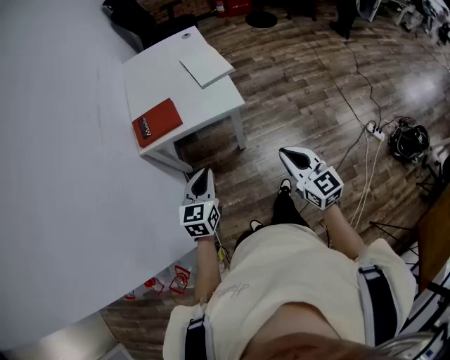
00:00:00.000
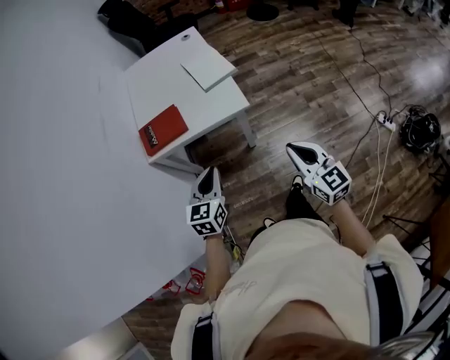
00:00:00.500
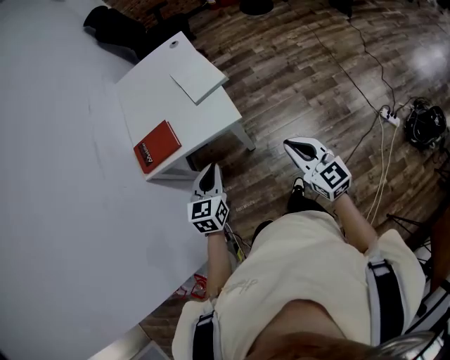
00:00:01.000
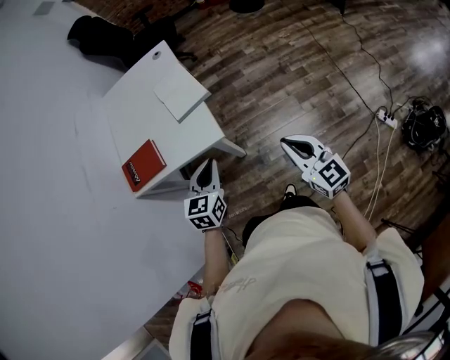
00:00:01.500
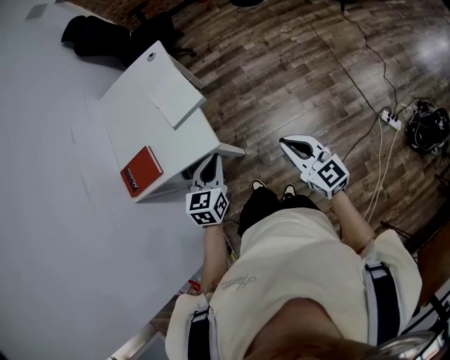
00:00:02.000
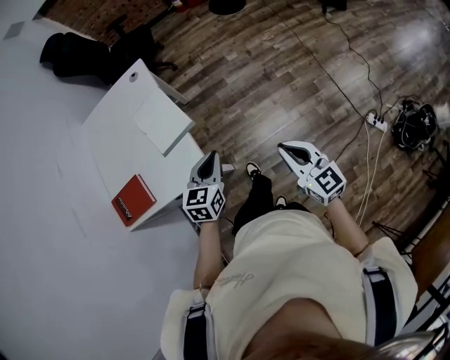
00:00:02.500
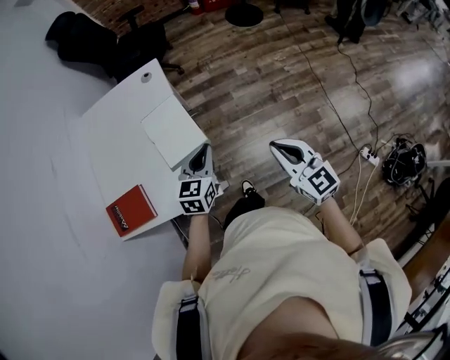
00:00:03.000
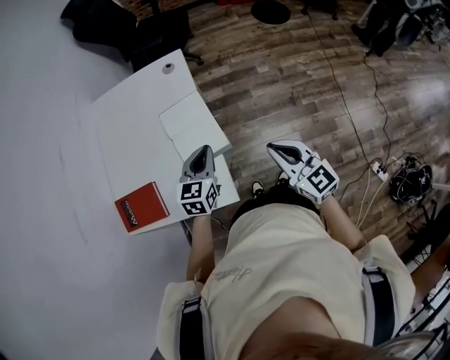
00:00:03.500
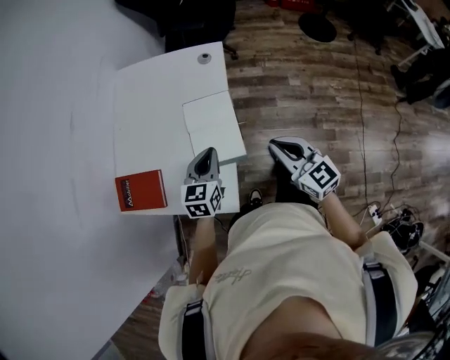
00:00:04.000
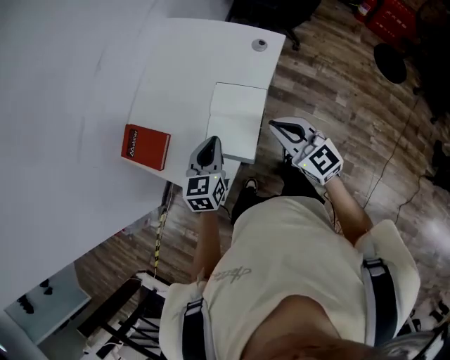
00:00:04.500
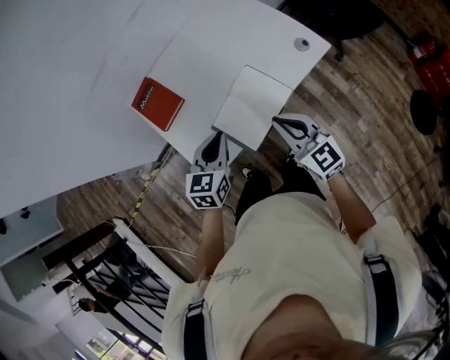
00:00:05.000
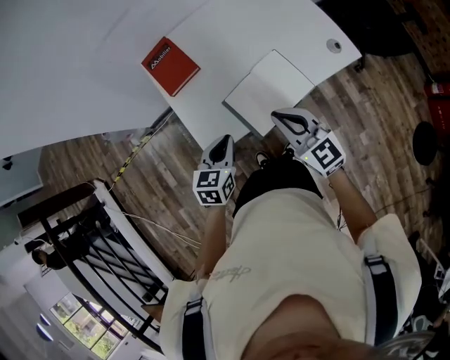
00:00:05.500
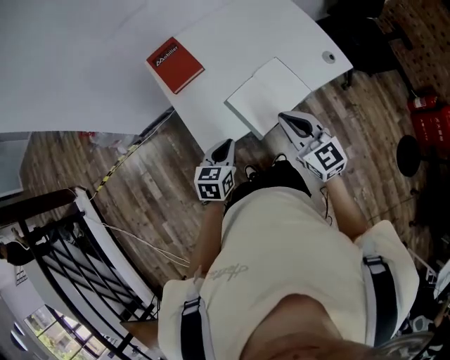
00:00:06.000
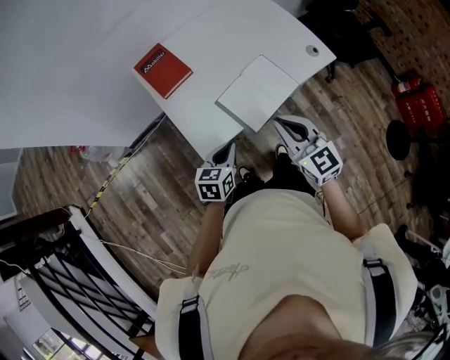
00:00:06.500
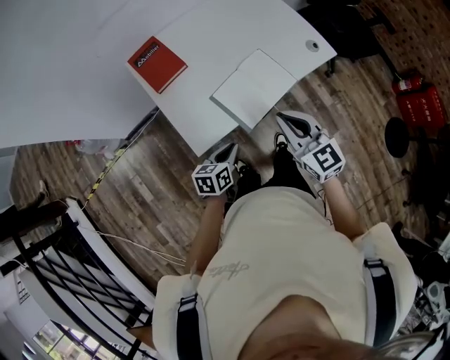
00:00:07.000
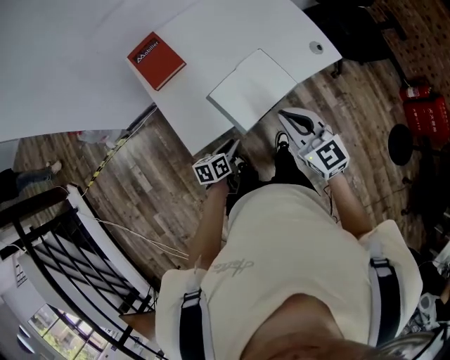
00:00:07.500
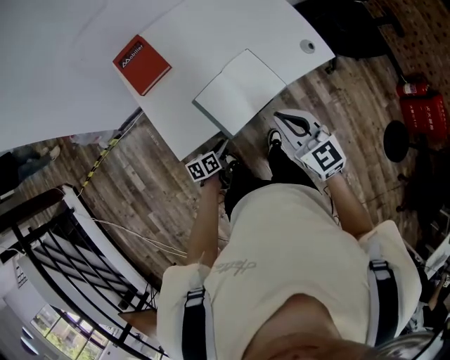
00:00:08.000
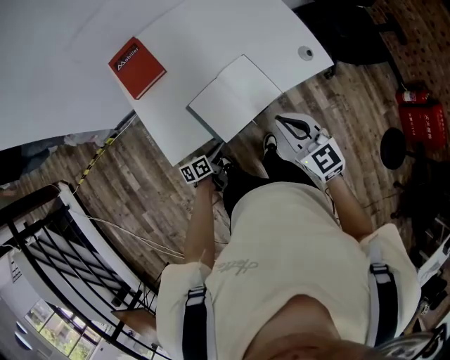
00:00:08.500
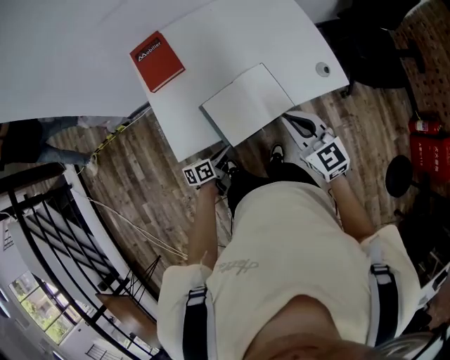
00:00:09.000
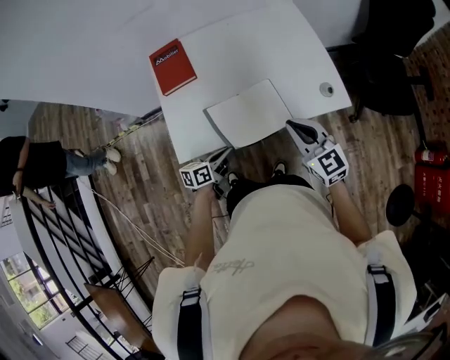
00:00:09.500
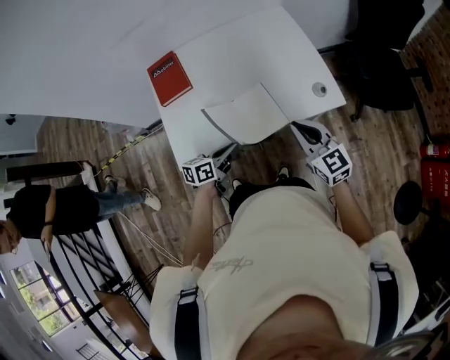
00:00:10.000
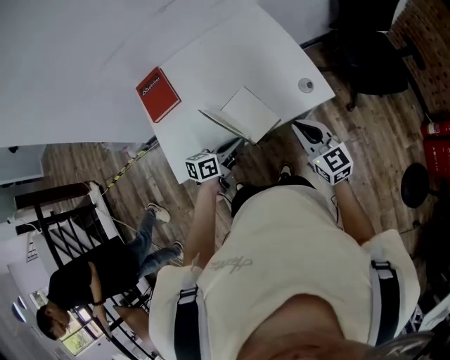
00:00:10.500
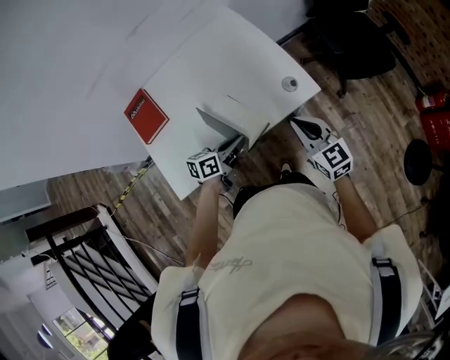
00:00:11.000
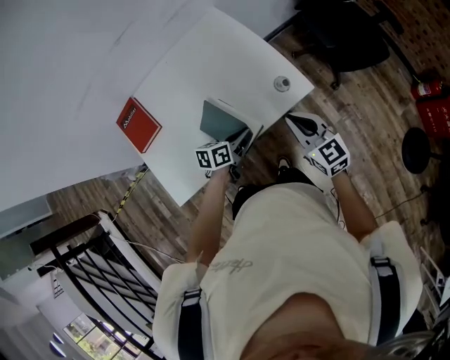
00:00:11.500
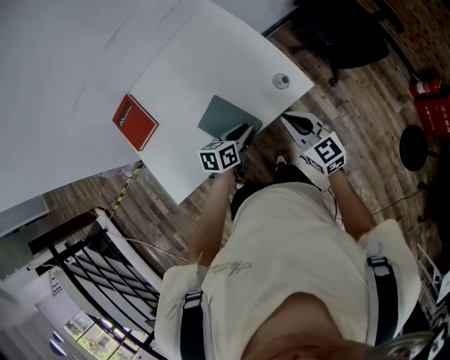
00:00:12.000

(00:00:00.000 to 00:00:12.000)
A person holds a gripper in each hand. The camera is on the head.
00:00:00.000 - 00:00:02.000: The grippers both shift to the right and forward by approximately 35 cm.
00:00:02.000 - 00:00:04.000: The right gripper shifts by approximately 40 cm, and turns by about 30 degrees. Meanwhile the left gripper changes place by approximately 35 cm, and changes its angle by approximately 20 degrees.
00:00:04.000 - 00:00:06.000: The left gripper changes place by some 15 cm, and changes its angle by approximately 60 degrees. The right gripper moves approximately 10 cm, and turns by some 60 degrees.
00:00:06.000 - 00:00:08.000: The left gripper moves downward, about 20 cm, and changes its angle by roughly 40 degrees, while the right gripper travels to the right by approximately 10 cm.
00:00:08.000 - 00:00:10.000: The left gripper travels upward, to the right and forward by about 20 cm. The right gripper travels to the right and forward by approximately 15 cm.
00:00:10.000 - 00:00:12.000: The right gripper heads to the right and forward, covering roughly 10 cm. Meanwhile the left gripper heads to the right and forward, covering about 20 cm, and opens.

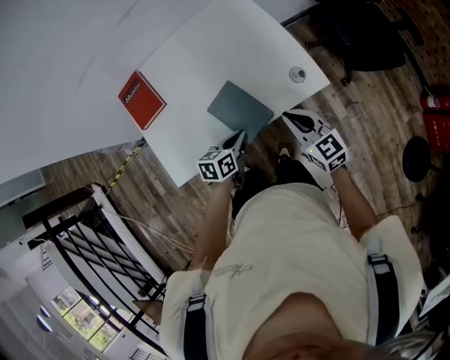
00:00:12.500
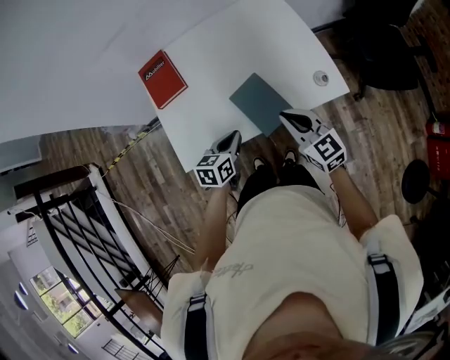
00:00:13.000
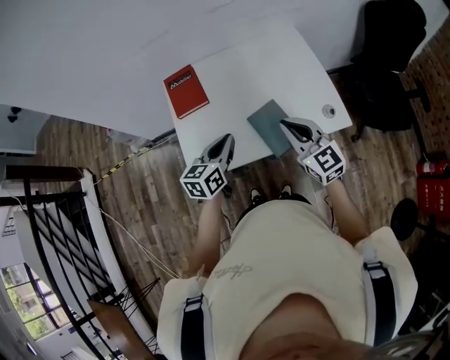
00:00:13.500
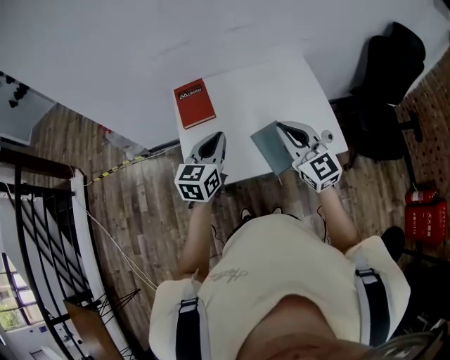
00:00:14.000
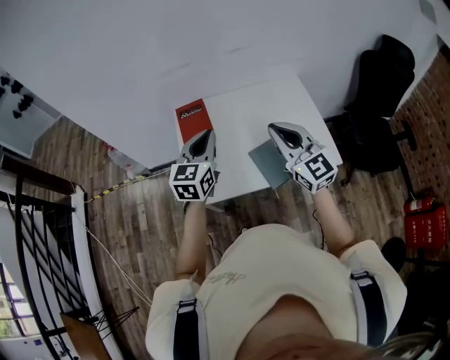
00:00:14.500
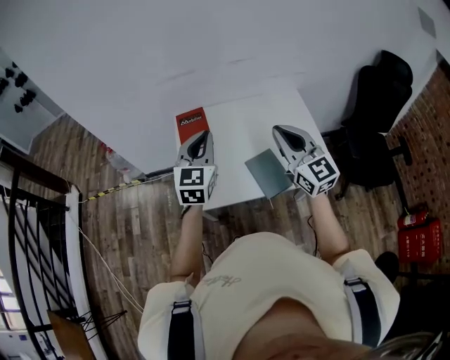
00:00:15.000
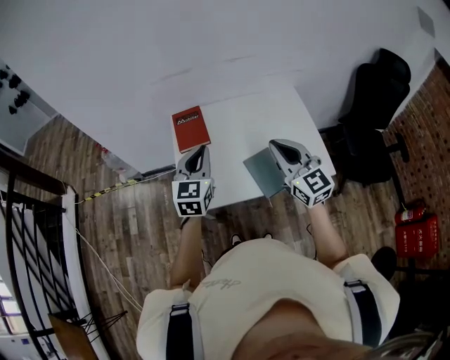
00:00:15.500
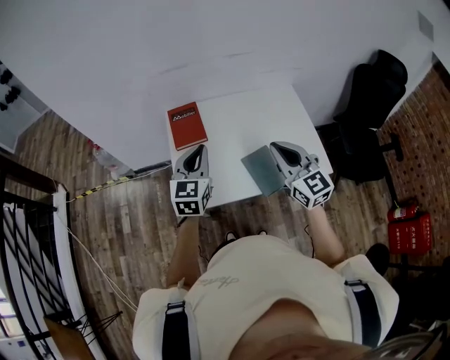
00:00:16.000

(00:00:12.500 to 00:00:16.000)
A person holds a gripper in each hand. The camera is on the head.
00:00:12.500 - 00:00:14.500: Both grippers travel together upward and to the left, some 35 cm. The right gripper swivels some 30 degrees. The left gripper angles its fingers upward, by roughly 30 degrees.
00:00:14.500 - 00:00:16.000: The grippers make only small movements.

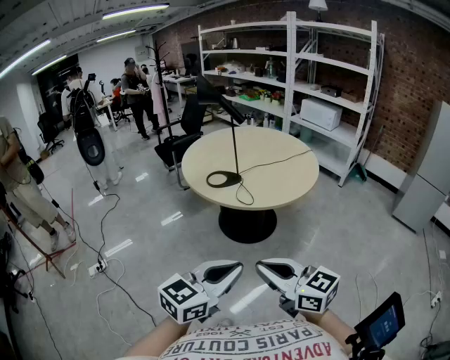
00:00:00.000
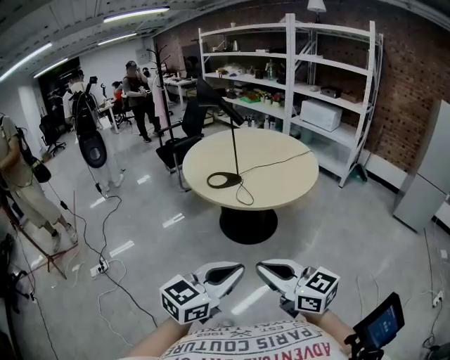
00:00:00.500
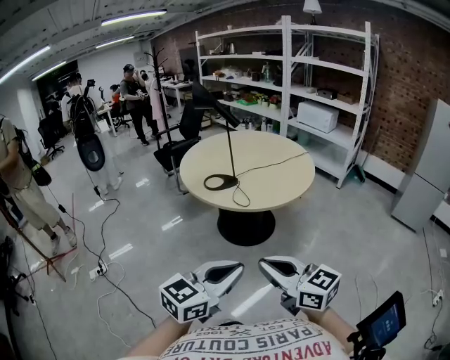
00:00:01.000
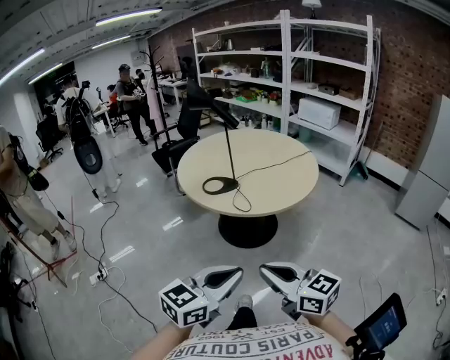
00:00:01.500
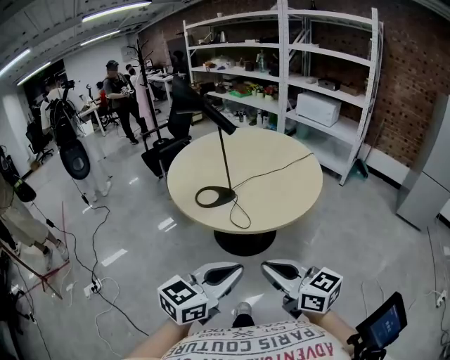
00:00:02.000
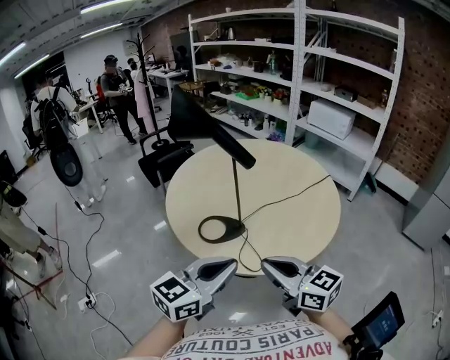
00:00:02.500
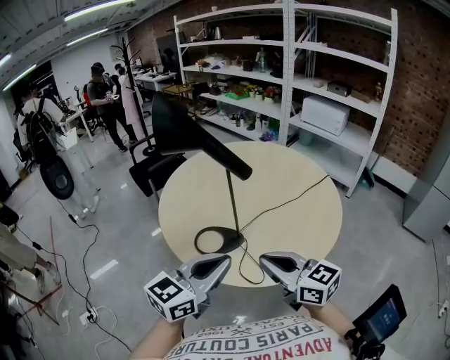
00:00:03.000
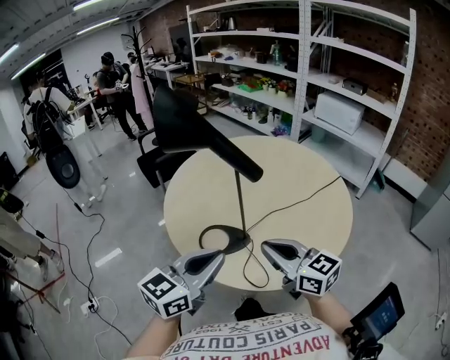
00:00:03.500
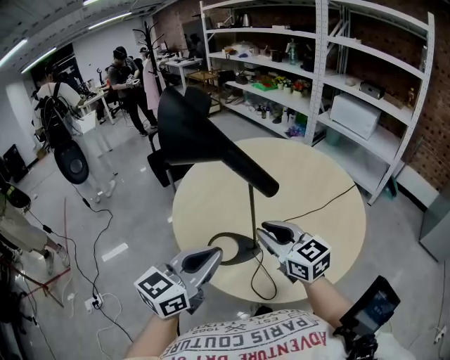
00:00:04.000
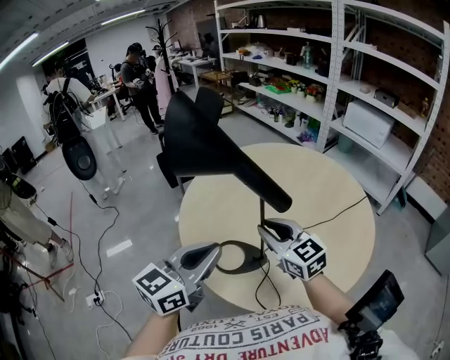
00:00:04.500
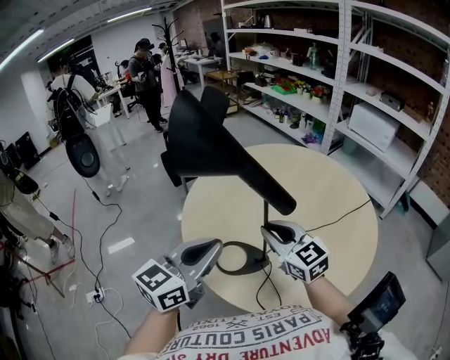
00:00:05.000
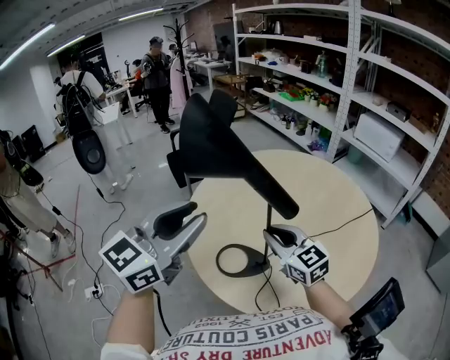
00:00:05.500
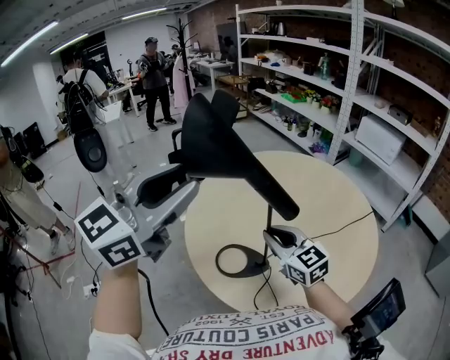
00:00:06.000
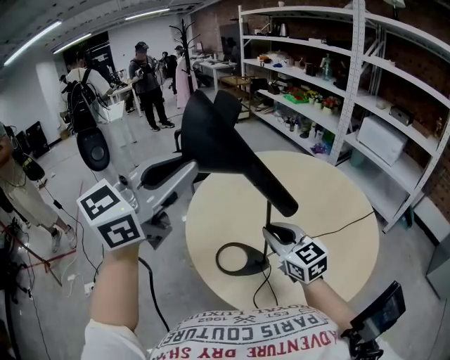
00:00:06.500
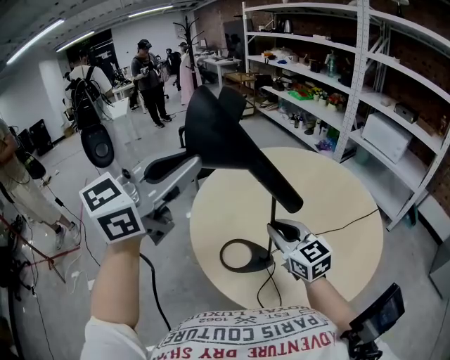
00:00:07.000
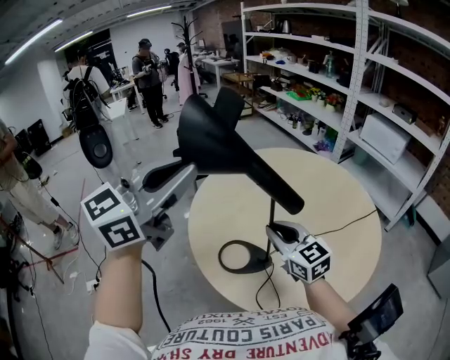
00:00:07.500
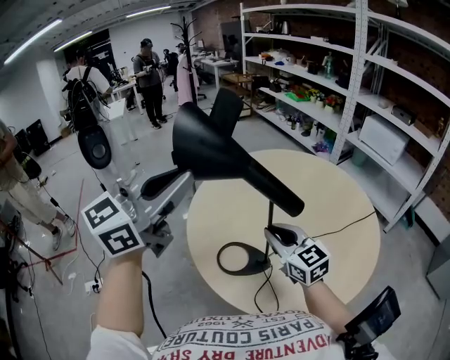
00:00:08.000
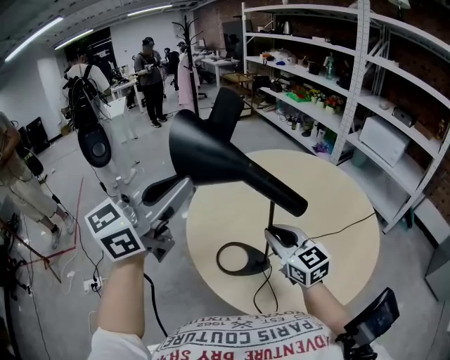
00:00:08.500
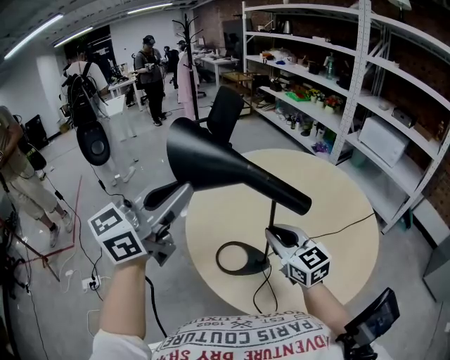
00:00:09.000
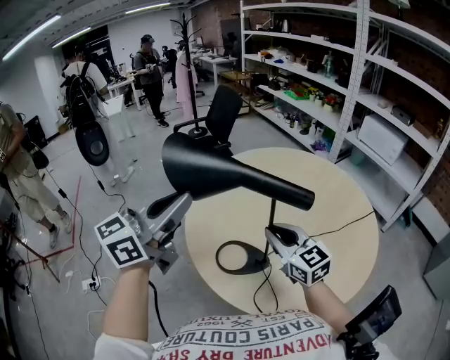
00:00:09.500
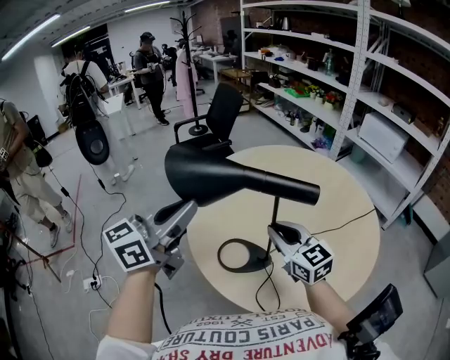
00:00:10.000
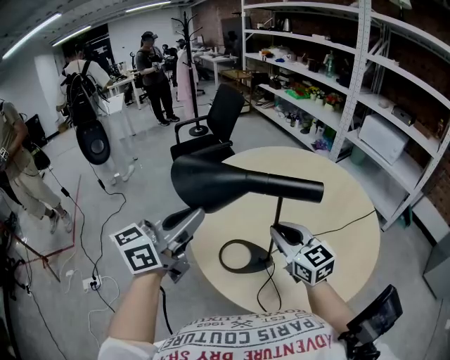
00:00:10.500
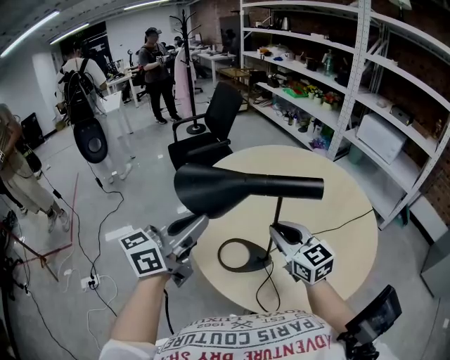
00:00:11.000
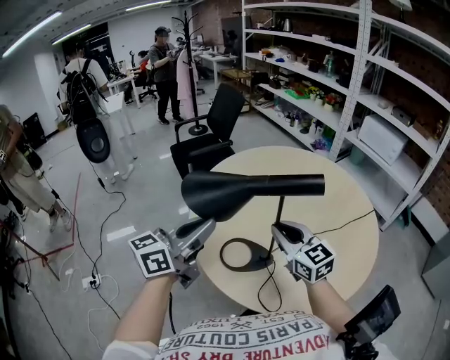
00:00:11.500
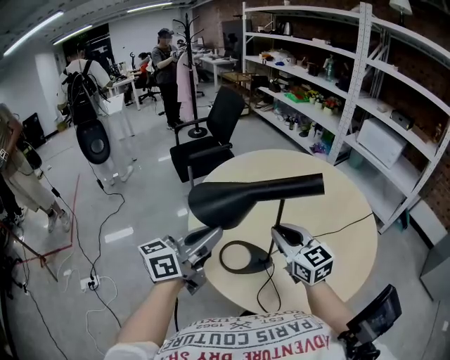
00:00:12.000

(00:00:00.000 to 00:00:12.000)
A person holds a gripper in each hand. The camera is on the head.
00:00:00.000 - 00:00:02.000: Both grippers travel together forward, about 15 cm.
00:00:02.000 - 00:00:04.000: The grippers both shift forward by roughly 40 cm.
00:00:04.000 - 00:00:06.000: The right gripper travels forward by some 5 cm; the left gripper travels upward by some 20 cm, swivels about 20 degrees, and opens up.
00:00:06.000 - 00:00:08.000: The left gripper closes its fingers.
00:00:08.000 - 00:00:10.000: The left gripper moves downward, approximately 10 cm.
00:00:10.000 - 00:00:12.000: The left gripper heads downward, covering approximately 10 cm.
